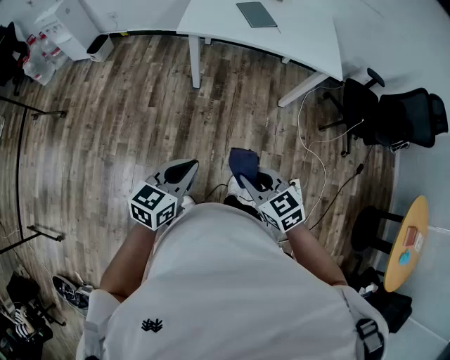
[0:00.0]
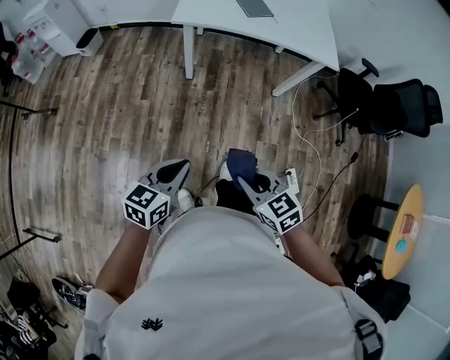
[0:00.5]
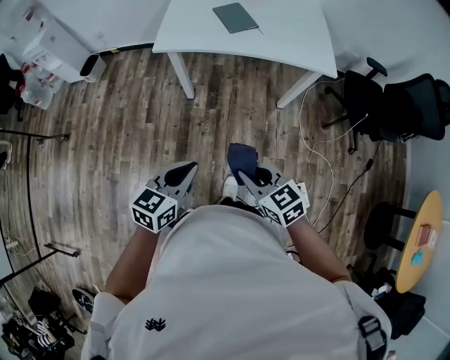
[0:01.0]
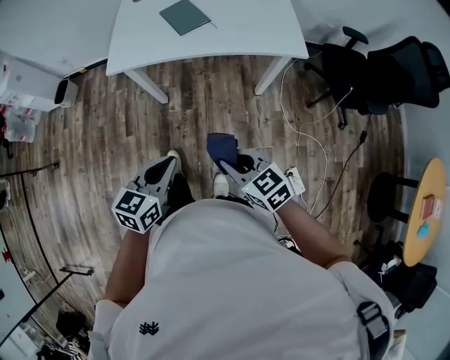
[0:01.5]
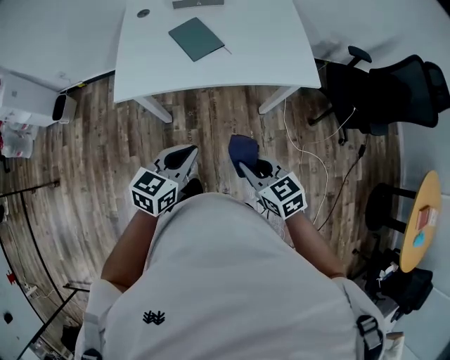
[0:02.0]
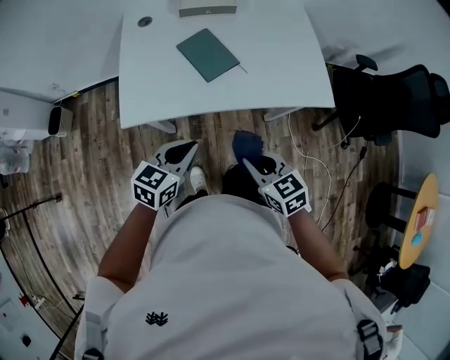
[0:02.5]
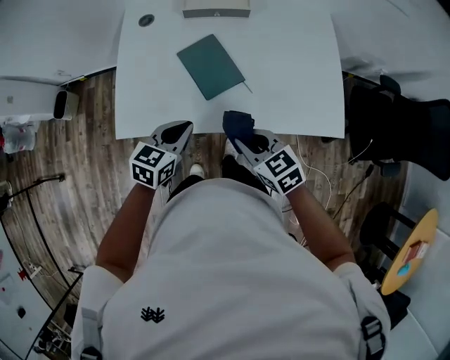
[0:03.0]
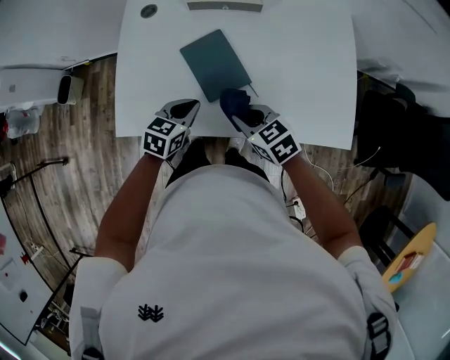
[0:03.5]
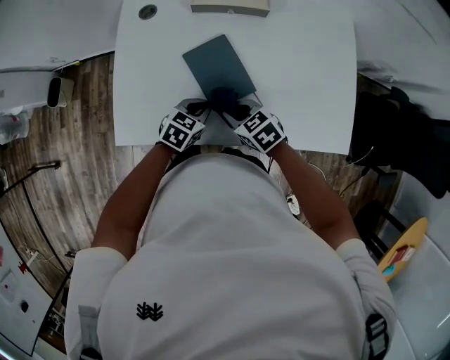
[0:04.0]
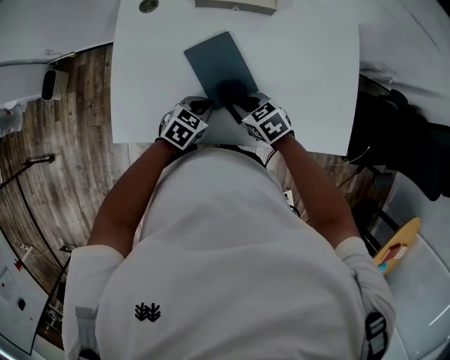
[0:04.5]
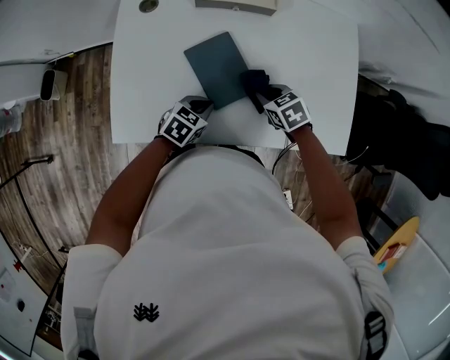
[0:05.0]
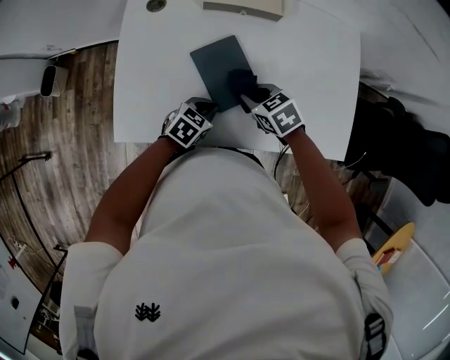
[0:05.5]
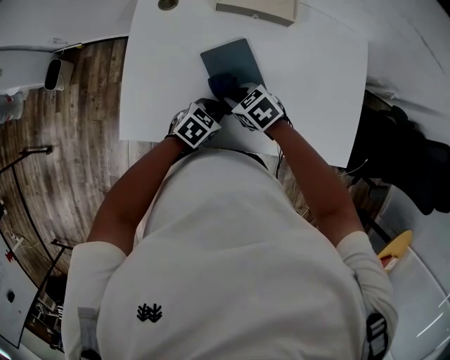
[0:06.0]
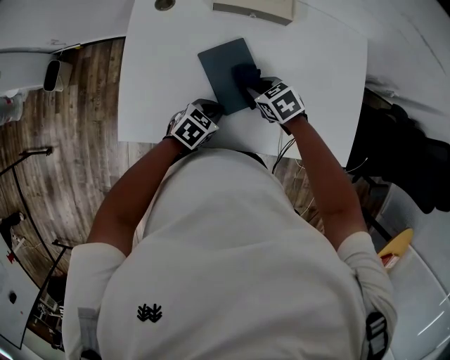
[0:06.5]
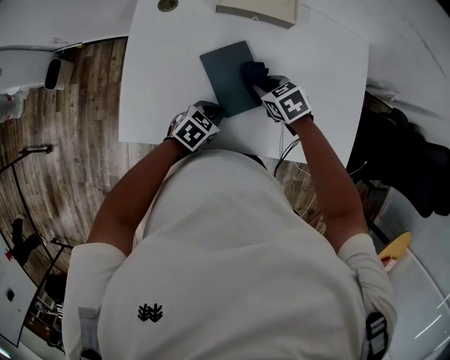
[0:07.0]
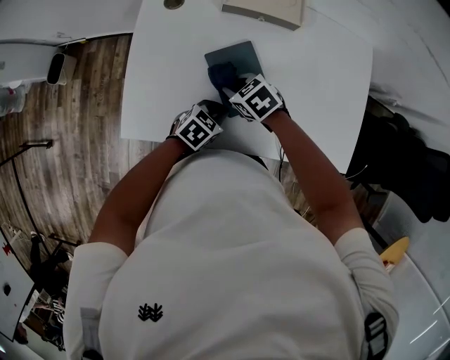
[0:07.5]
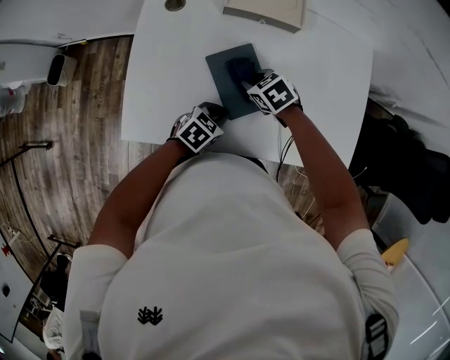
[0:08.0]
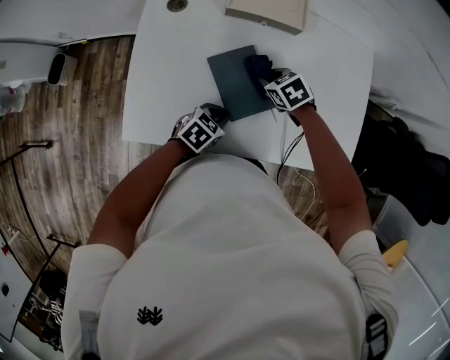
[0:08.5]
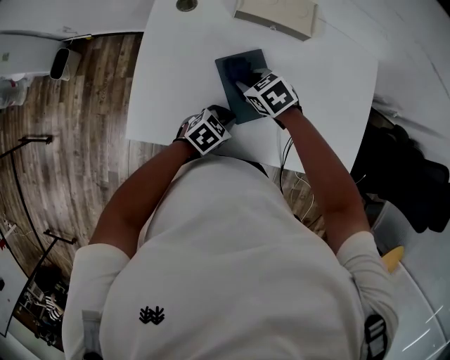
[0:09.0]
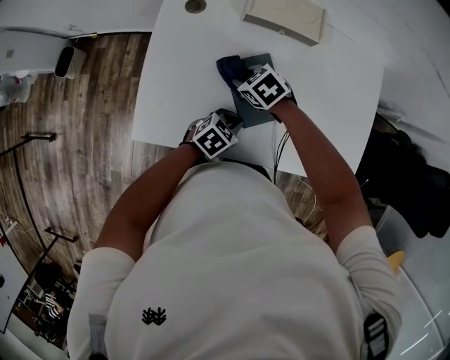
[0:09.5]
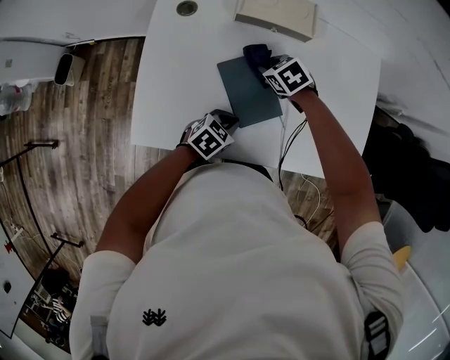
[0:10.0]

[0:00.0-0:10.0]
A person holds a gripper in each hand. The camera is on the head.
0:00.0 to 0:02.0: The grippers both shift forward and to the right by some 35 cm.
0:02.0 to 0:04.0: The left gripper heads forward and downward, covering approximately 40 cm, and rotates some 20 degrees; the right gripper shifts approximately 40 cm forward, and changes its angle by approximately 30 degrees.
0:06.0 to 0:08.0: The right gripper ends up some 10 cm from where it was.
0:08.0 to 0:10.0: The right gripper moves some 10 cm.

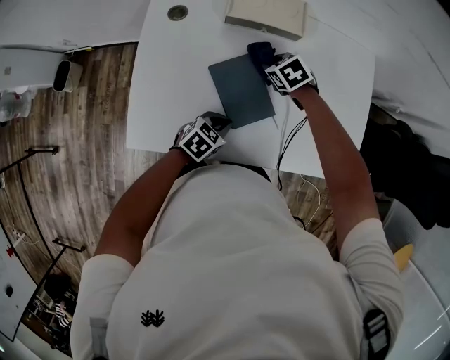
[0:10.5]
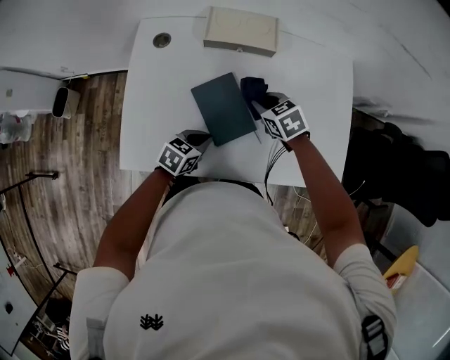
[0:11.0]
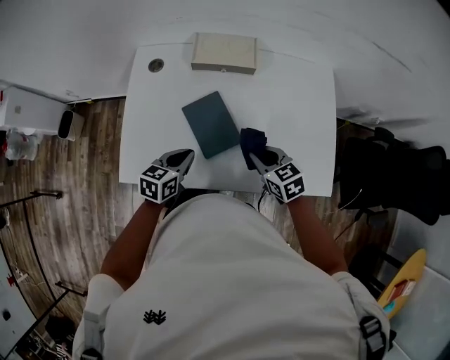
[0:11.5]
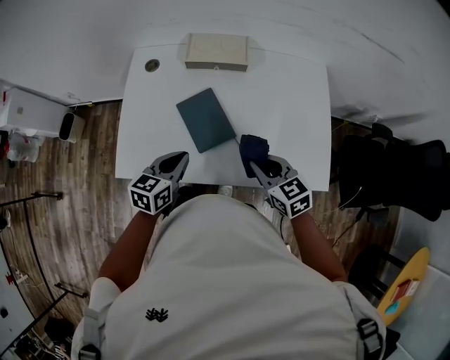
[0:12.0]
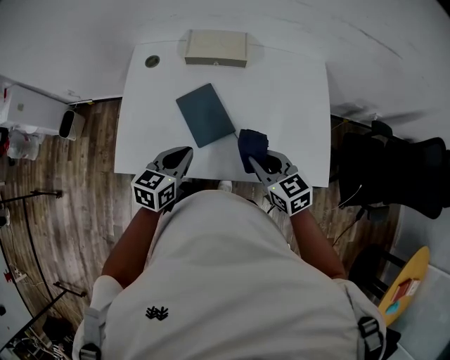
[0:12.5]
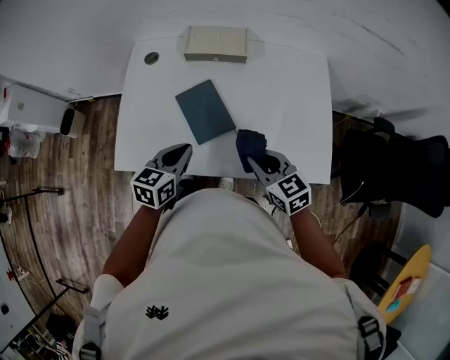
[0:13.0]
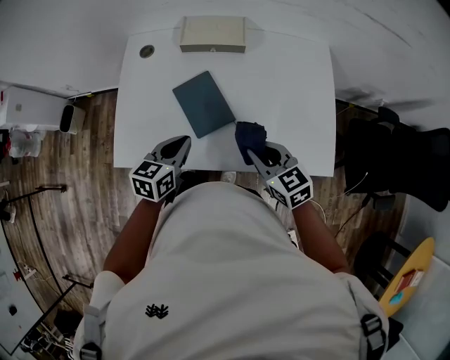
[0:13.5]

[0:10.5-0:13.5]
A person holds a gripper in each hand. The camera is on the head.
0:10.5 to 0:12.0: The right gripper travels backward, upward and to the right by approximately 30 cm, and tilts its fingers roughly 30 degrees upward. The left gripper shifts approximately 15 cm upward, and swivels about 30 degrees.
0:12.0 to 0:13.5: There are only small adjustments of the grippers.

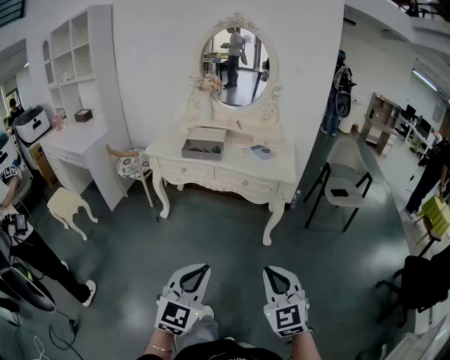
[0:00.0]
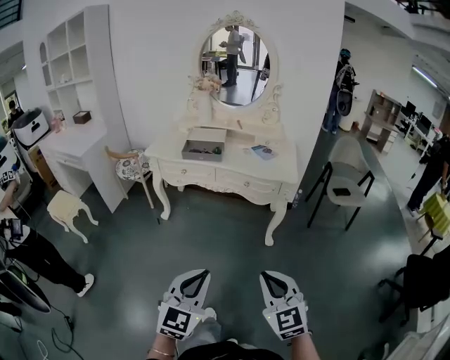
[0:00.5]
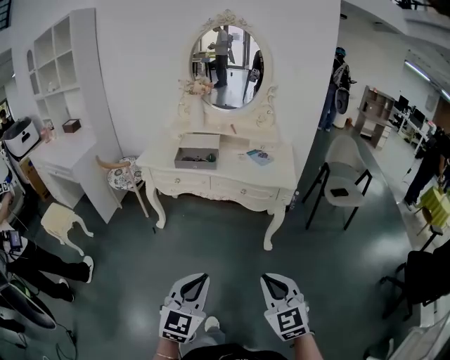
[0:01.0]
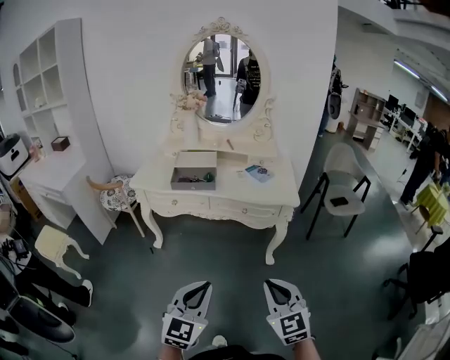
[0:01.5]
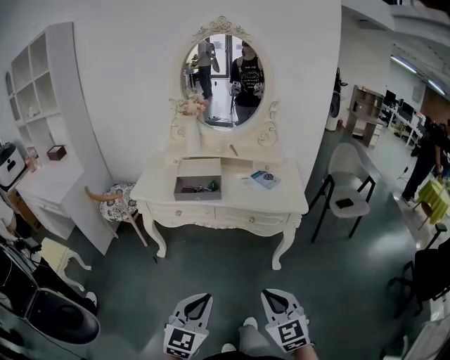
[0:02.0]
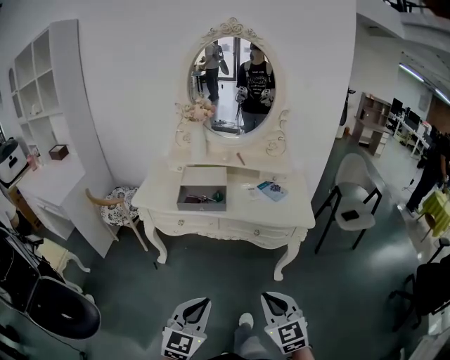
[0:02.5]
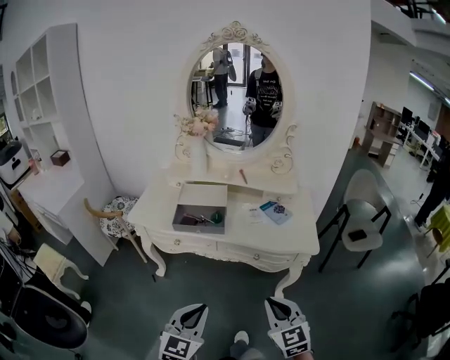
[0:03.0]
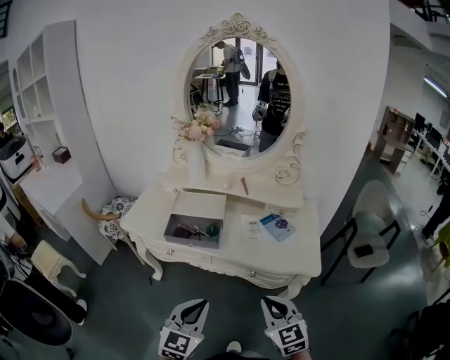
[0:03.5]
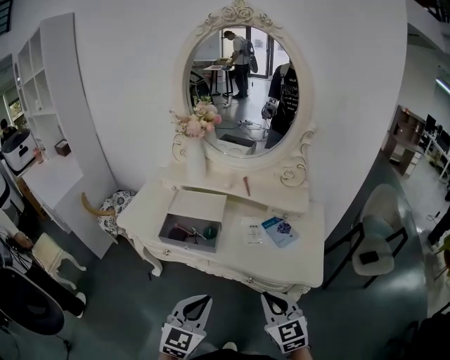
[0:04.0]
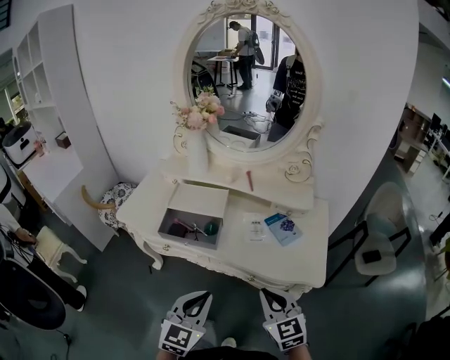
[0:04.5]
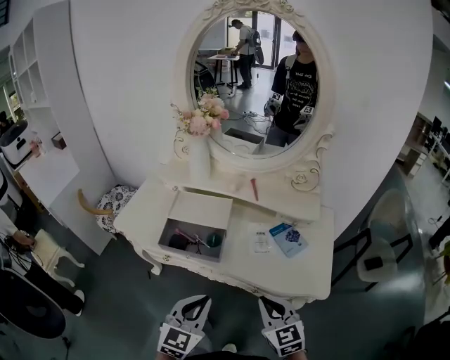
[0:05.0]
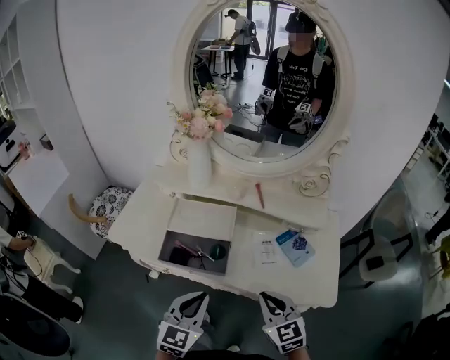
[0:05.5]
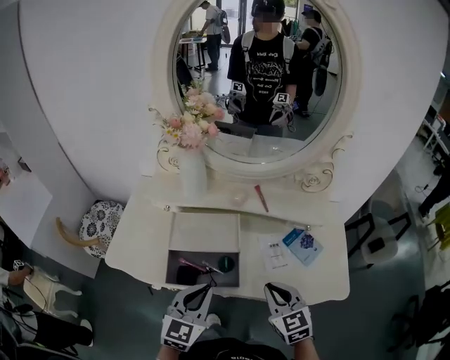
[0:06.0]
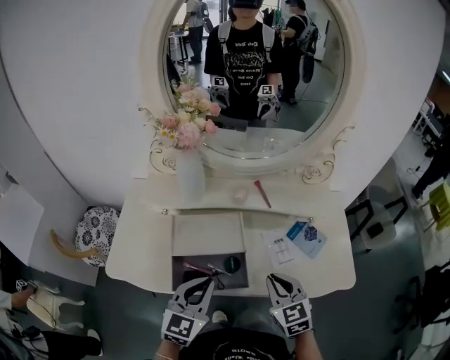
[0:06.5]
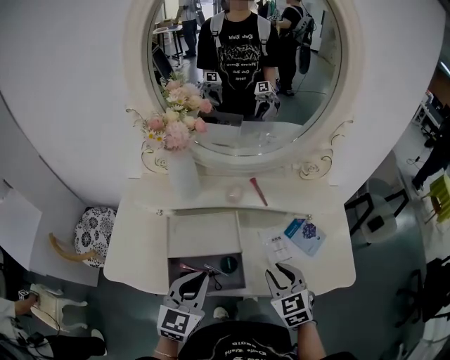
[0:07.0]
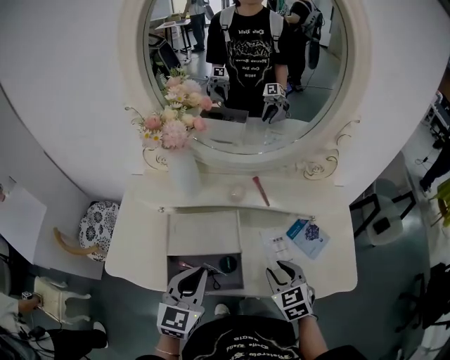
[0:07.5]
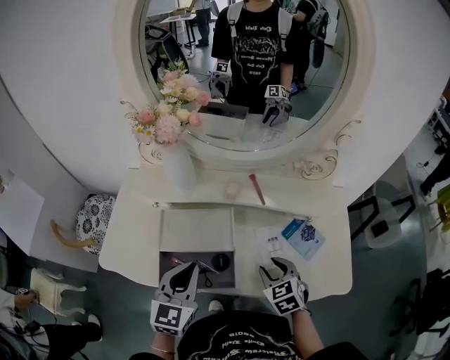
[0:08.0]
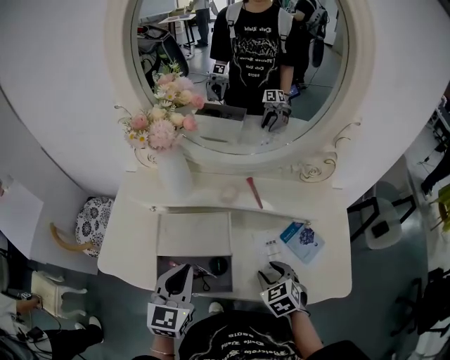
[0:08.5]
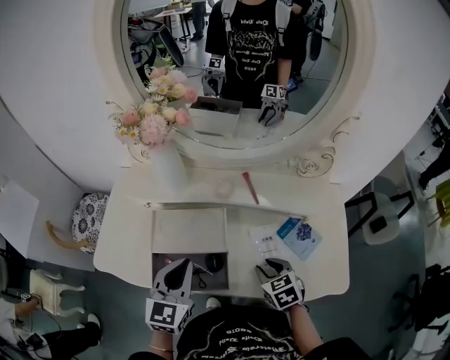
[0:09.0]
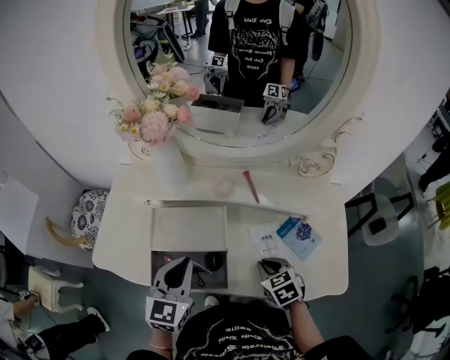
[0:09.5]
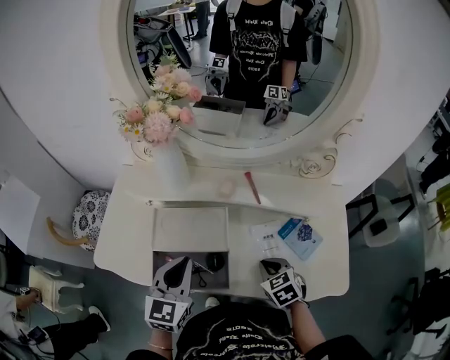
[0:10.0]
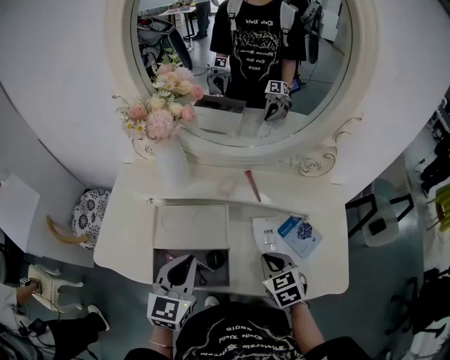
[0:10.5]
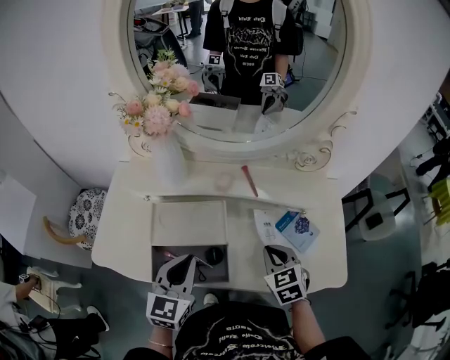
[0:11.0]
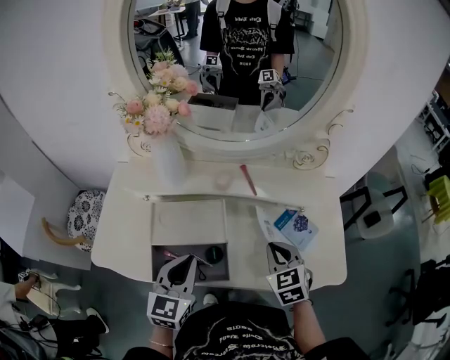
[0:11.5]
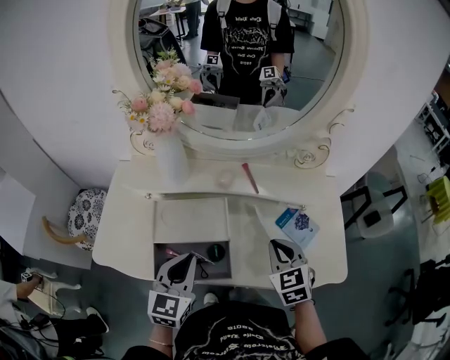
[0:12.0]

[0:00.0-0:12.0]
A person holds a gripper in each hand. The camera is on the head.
0:00.0 to 0:02.0: The grippers both shift forward and to the left by approximately 20 cm.
0:02.0 to 0:04.0: The two grippers go roughly 30 cm forward.
0:04.0 to 0:06.0: The two grippers go some 20 cm forward and to the left.
0:06.0 to 0:08.0: The right gripper is displaced forward and downward by about 10 cm, and opens. The left gripper shifts about 5 cm forward.
0:08.0 to 0:10.0: The right gripper closes up.
0:10.0 to 0:12.0: The right gripper moves upward, some 10 cm, and rotates some 20 degrees.

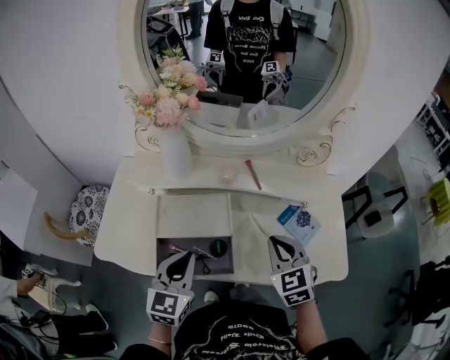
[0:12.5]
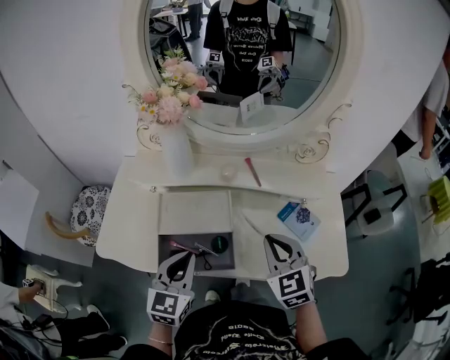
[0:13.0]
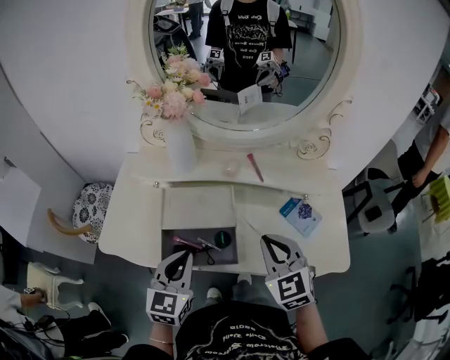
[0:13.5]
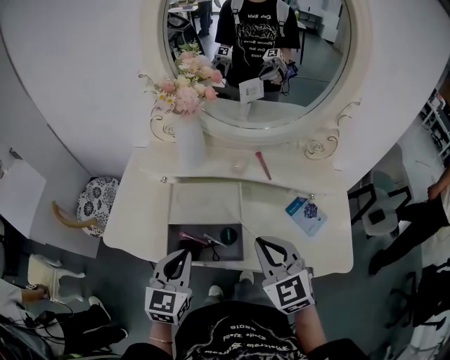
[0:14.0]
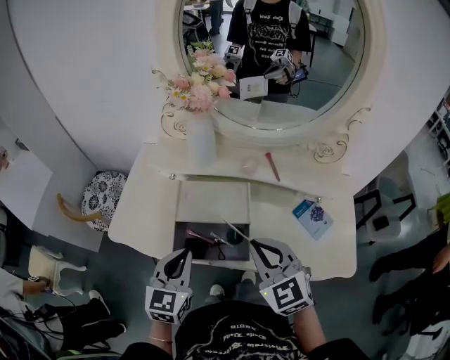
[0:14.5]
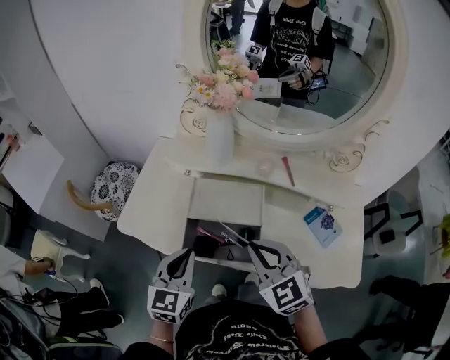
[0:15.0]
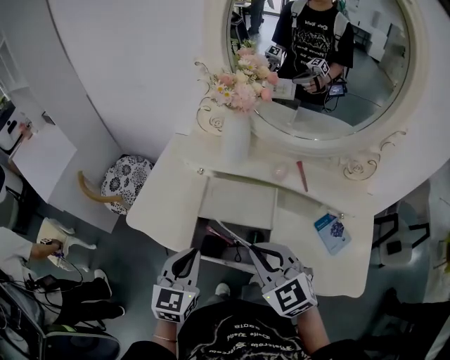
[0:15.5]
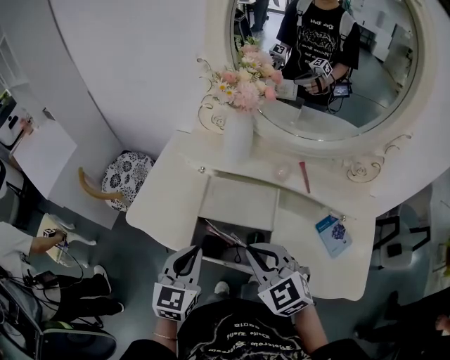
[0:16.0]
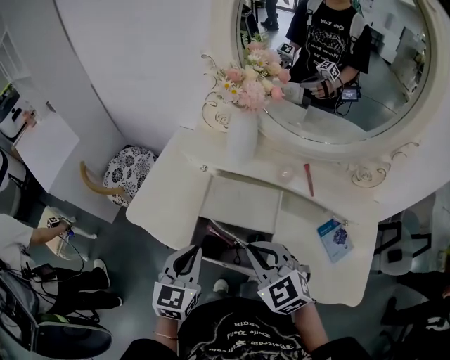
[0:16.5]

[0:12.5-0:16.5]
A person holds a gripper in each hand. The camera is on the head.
0:12.5 to 0:14.5: The left gripper heads to the left, covering roughly 5 cm. The right gripper heads to the left, upward and backward, covering some 15 cm, and rotates about 20 degrees.
0:14.5 to 0:16.5: The right gripper moves to the left, some 5 cm.
